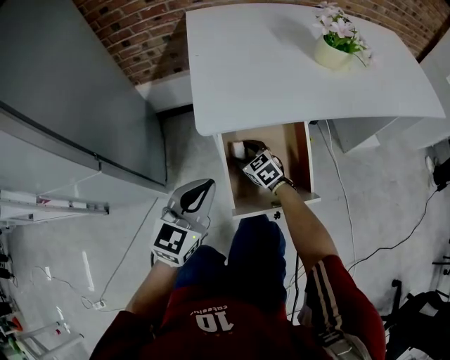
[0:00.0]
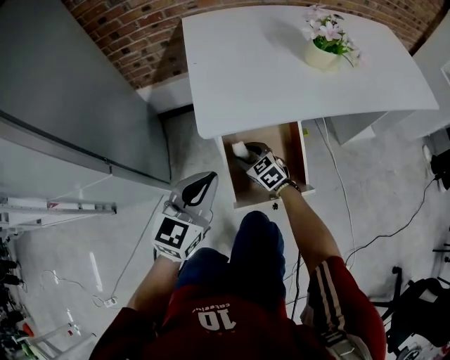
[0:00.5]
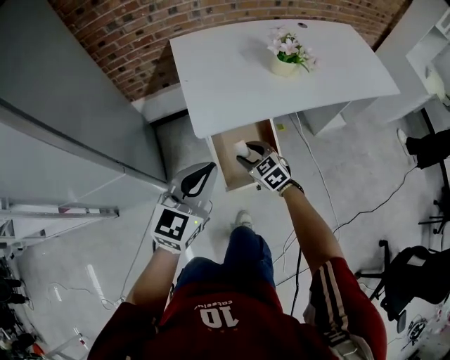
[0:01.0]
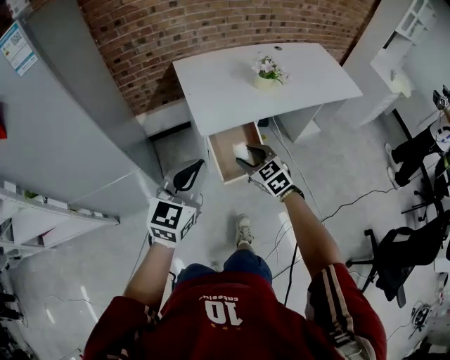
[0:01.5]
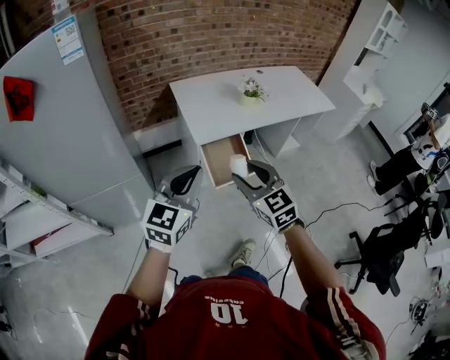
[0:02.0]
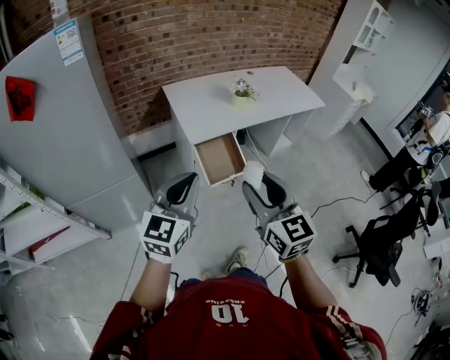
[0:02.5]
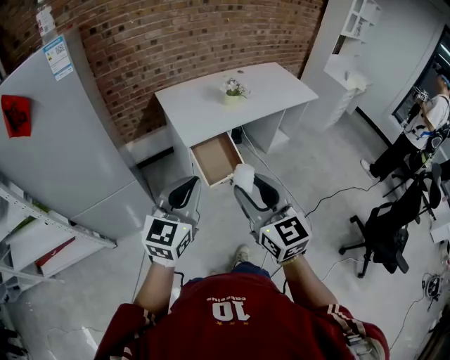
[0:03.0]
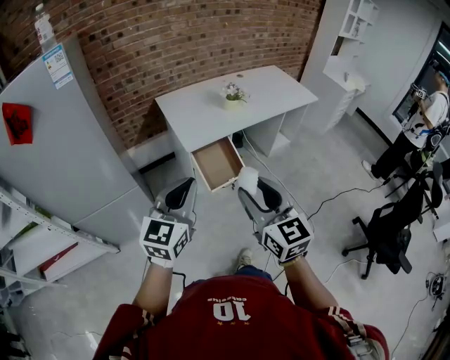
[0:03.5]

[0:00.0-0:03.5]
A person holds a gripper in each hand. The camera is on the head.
0:00.0 to 0:02.0: Both grippers travel together upward and backward, approximately 60 cm. The right gripper swivels approximately 30 degrees.
0:02.0 to 0:03.5: The left gripper heads backward, covering approximately 5 cm. Meanwhile the right gripper is displaced backward and upward by approximately 15 cm, and rotates about 20 degrees.

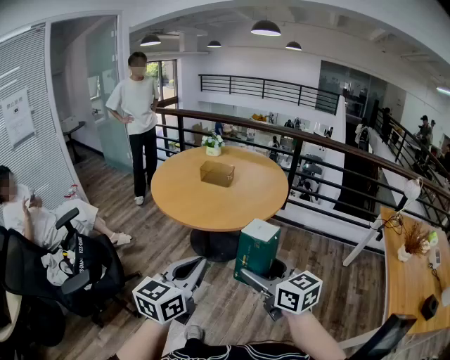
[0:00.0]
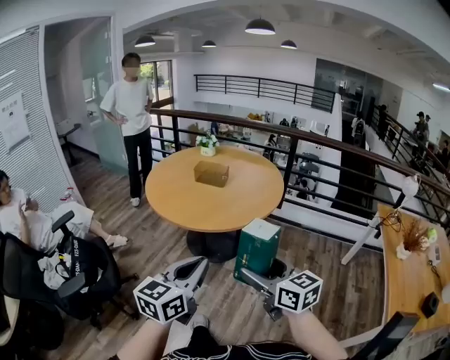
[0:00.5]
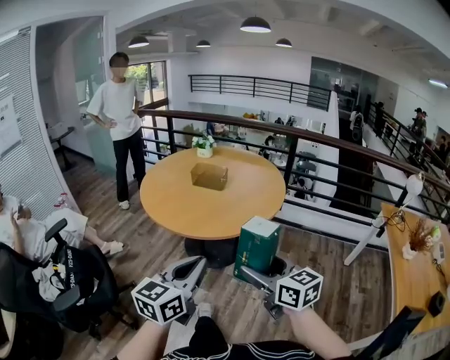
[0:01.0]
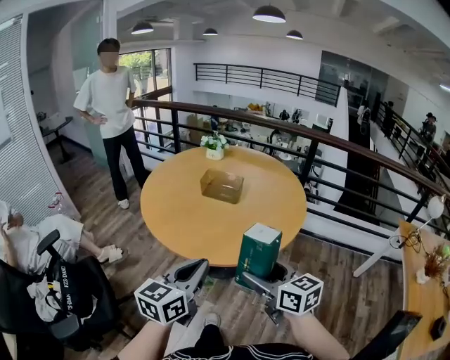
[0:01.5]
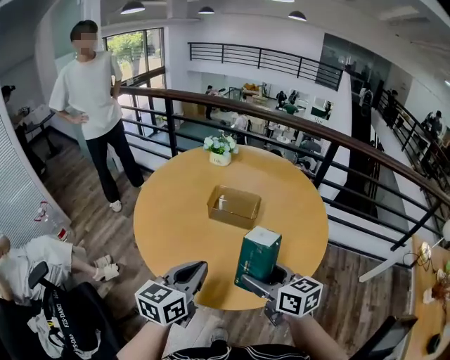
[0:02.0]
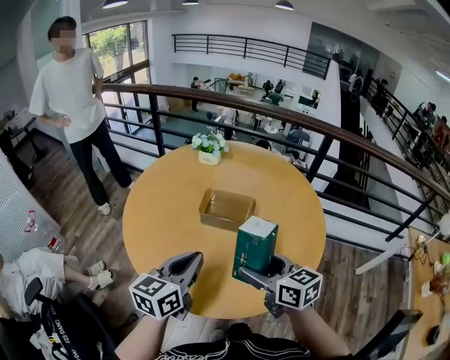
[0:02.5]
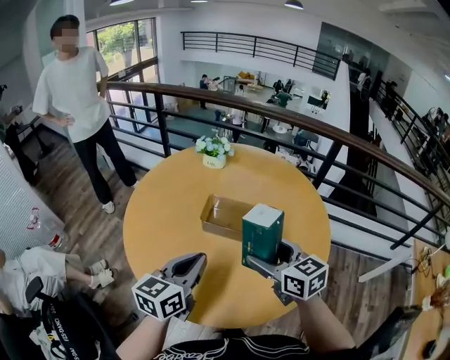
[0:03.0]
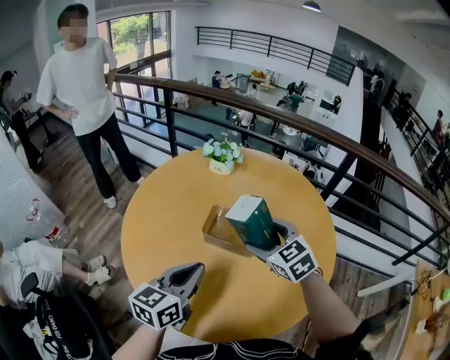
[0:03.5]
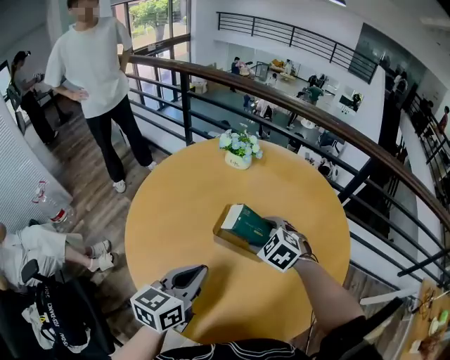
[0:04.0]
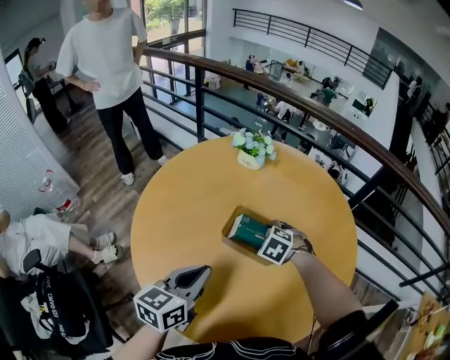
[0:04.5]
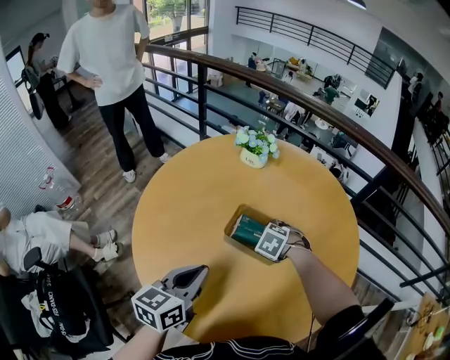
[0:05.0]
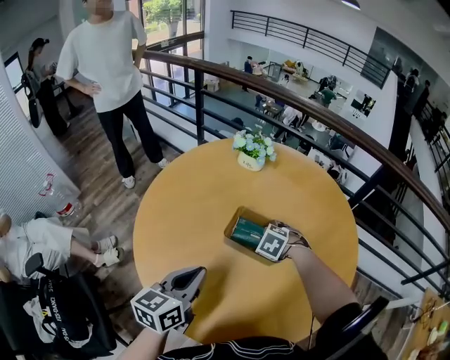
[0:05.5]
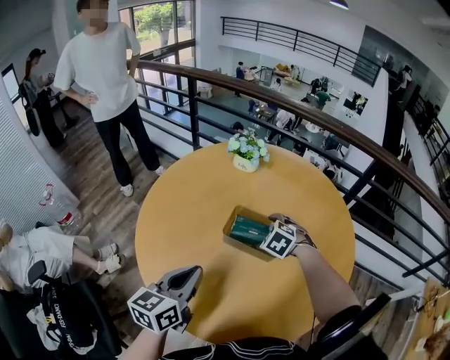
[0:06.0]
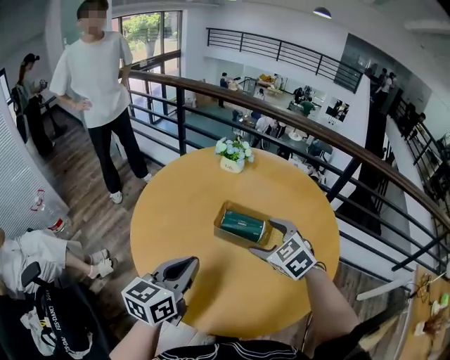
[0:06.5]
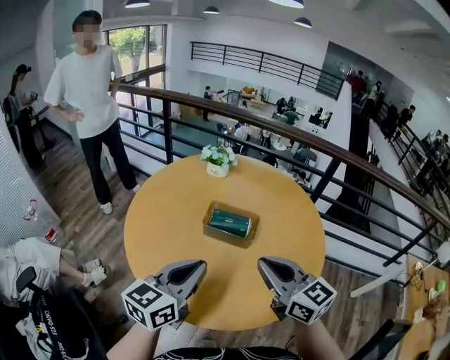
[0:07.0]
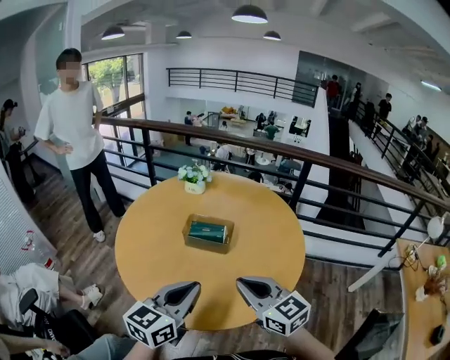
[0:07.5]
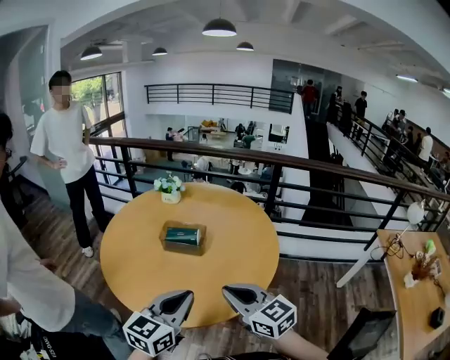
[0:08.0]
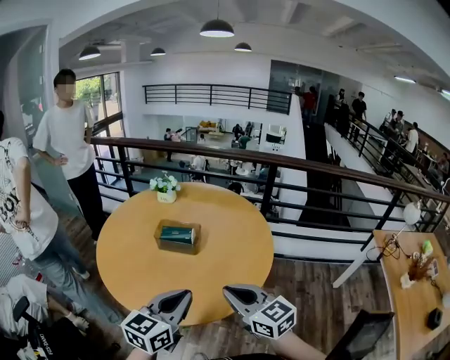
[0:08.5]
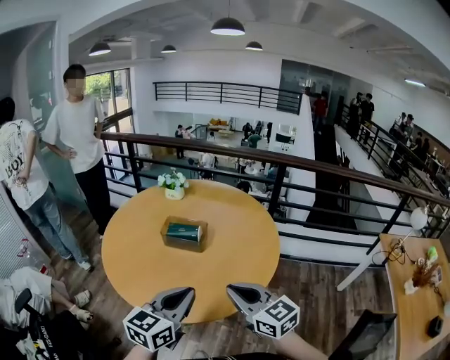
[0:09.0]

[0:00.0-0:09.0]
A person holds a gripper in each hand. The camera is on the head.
0:00.0 to 0:02.0: The grippers both shift forward by about 35 cm.
0:02.0 to 0:04.5: The right gripper travels forward and downward by some 30 cm, and tilts its fingers approximately 50 degrees downward. Meanwhile the left gripper heads forward, covering roughly 10 cm.
0:04.5 to 0:07.0: The right gripper is displaced upward by some 25 cm, angles its fingers upward, by roughly 70 degrees, and closes up. The left gripper moves upward, approximately 10 cm.
0:07.0 to 0:09.0: The grippers both shift backward and to the right by about 10 cm.

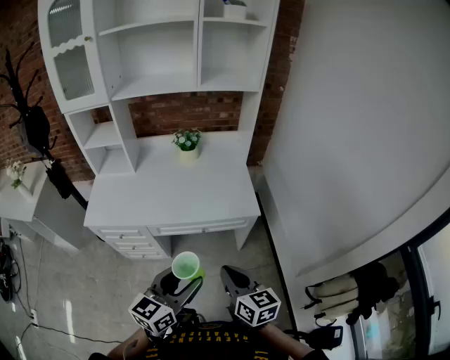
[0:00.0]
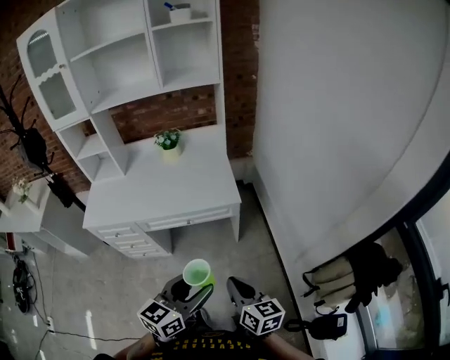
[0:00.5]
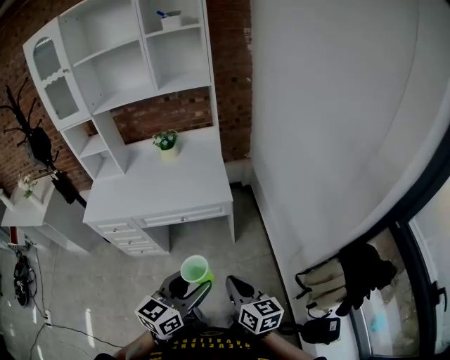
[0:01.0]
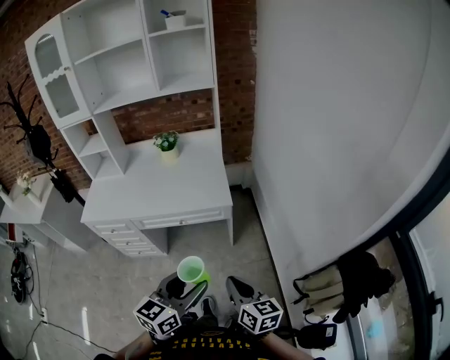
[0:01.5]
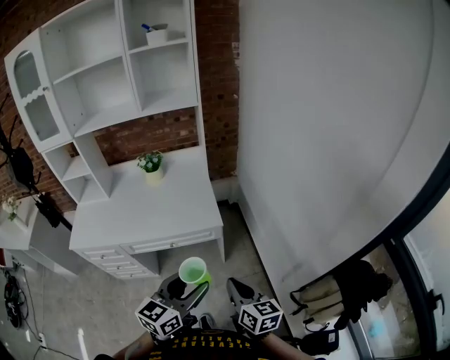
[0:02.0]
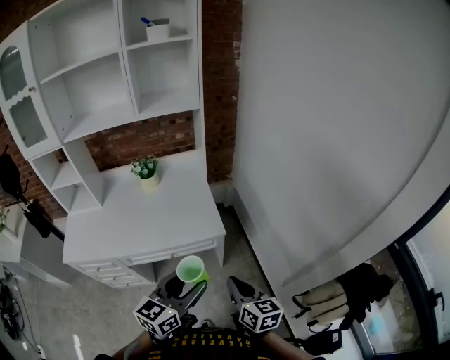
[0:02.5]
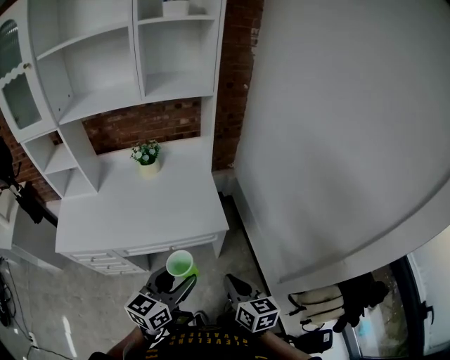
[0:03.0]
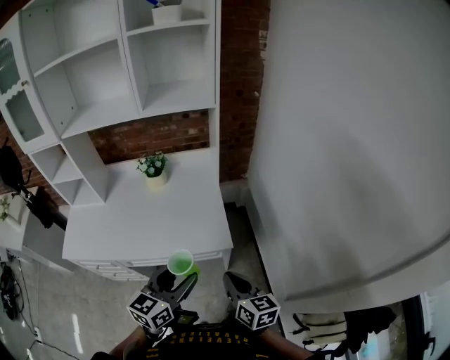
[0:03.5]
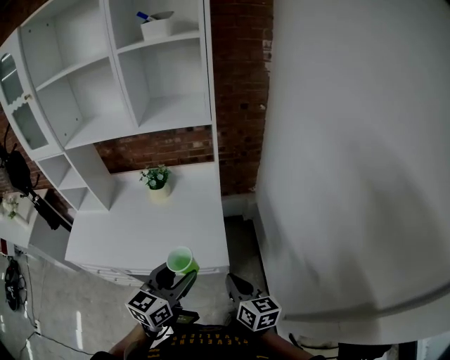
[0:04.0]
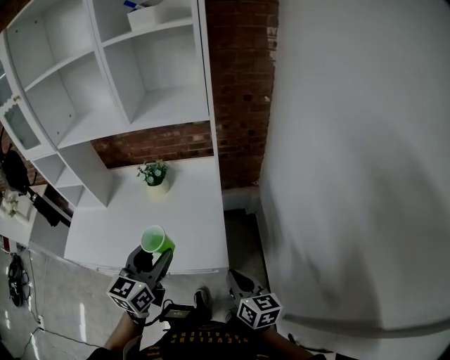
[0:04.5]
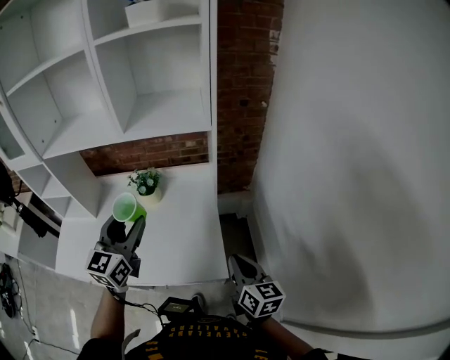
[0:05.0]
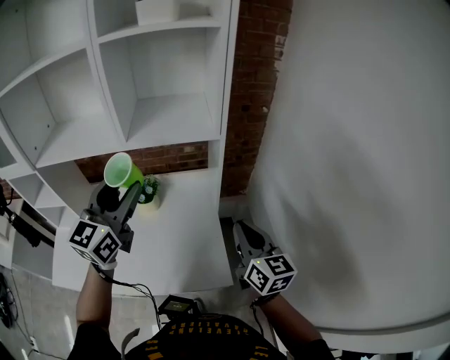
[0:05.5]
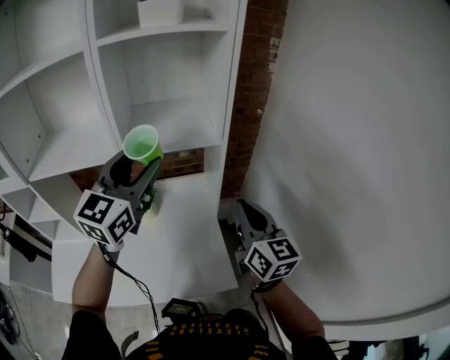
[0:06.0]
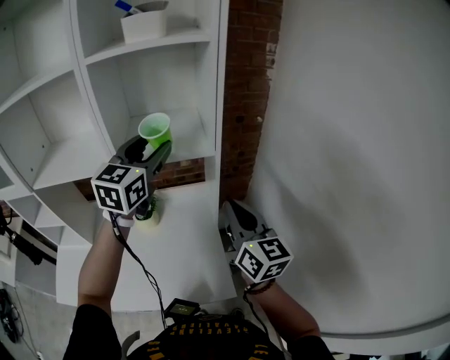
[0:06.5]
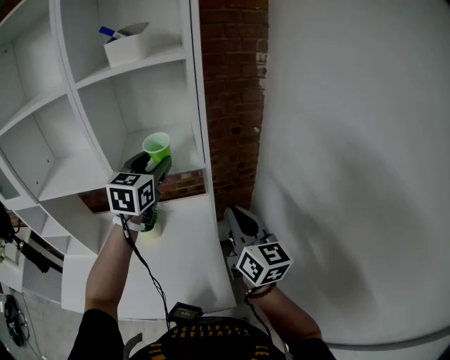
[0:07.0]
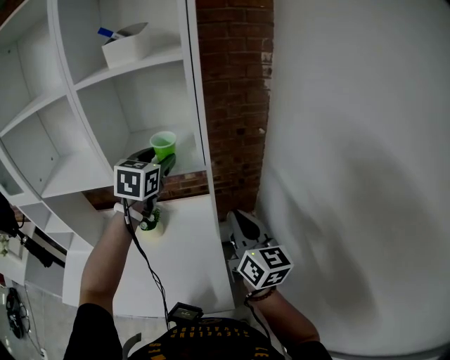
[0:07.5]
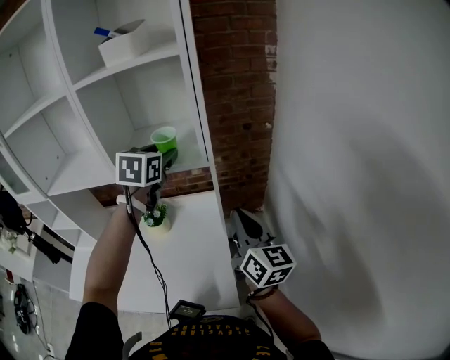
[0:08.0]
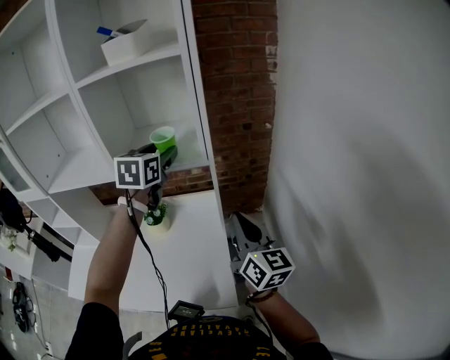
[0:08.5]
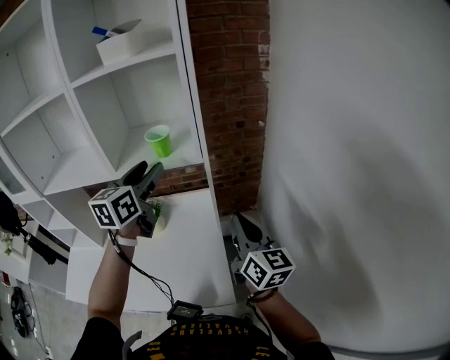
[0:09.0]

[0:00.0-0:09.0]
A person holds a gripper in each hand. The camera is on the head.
0:00.0 to 0:02.0: The two grippers go some 25 cm to the right.
0:02.0 to 0:04.5: The grippers both shift forward by some 30 cm. The left gripper swivels some 20 degrees.
0:04.5 to 0:07.0: The two grippers go approximately 40 cm forward and upward. The right gripper changes its angle by about 30 degrees.
0:07.0 to 0:09.0: The left gripper rotates approximately 20 degrees.

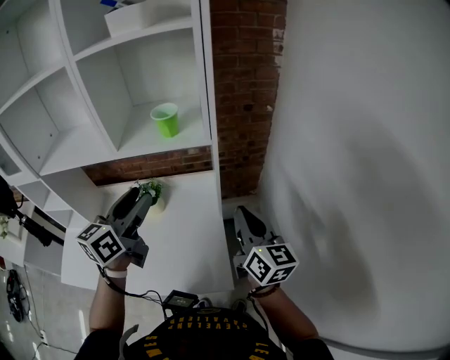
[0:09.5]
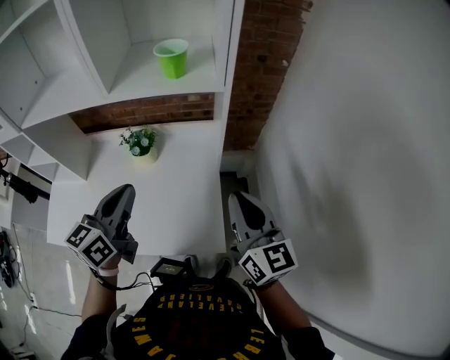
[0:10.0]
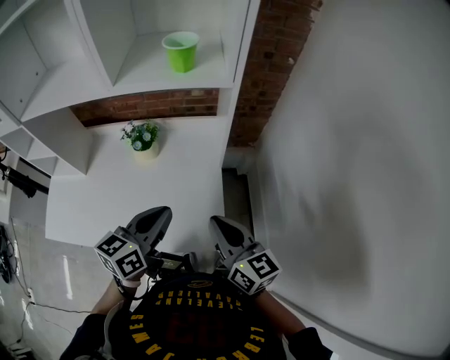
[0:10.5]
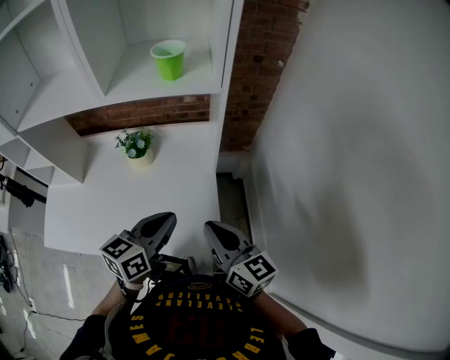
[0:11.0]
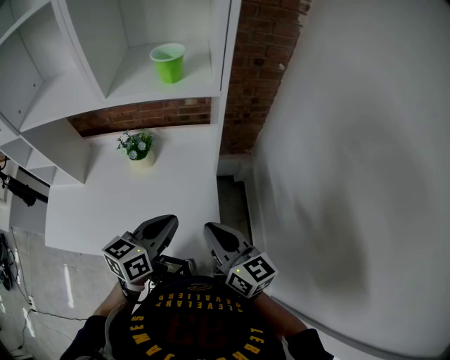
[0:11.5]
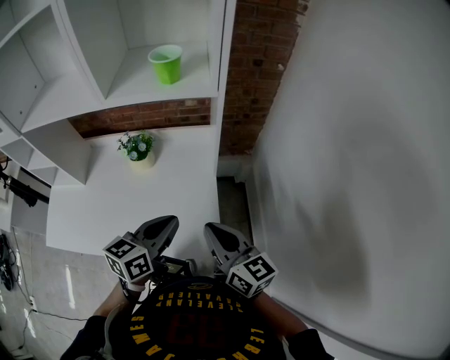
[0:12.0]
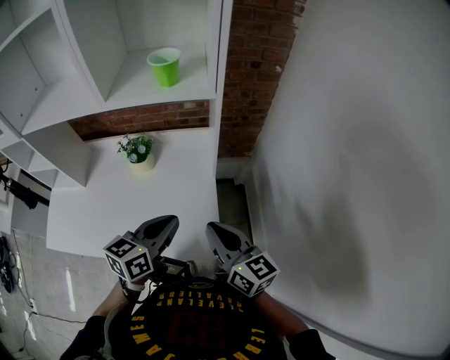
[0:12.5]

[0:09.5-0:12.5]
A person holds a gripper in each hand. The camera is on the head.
0:09.5 to 0:11.0: The right gripper moves backward, downward and to the left, some 15 cm, while the left gripper heads downward and backward, covering approximately 20 cm, and closes.
0:11.0 to 0:12.5: The grippers make only small movements.

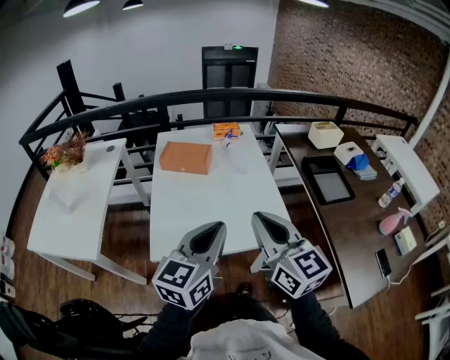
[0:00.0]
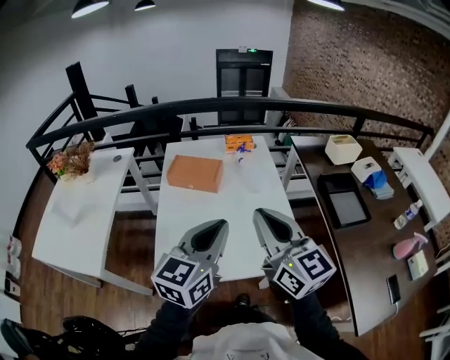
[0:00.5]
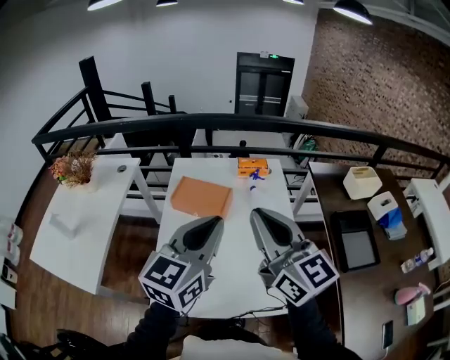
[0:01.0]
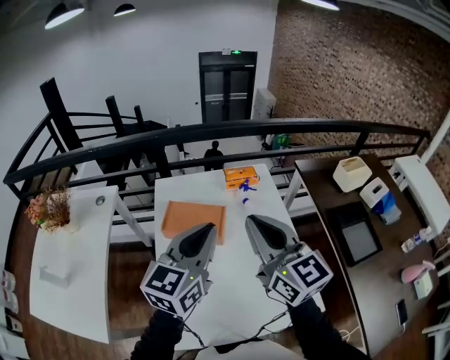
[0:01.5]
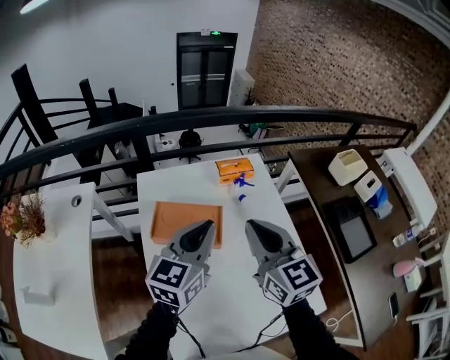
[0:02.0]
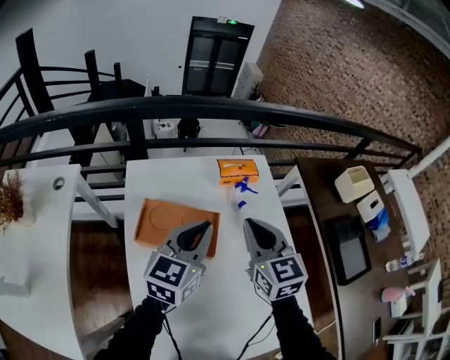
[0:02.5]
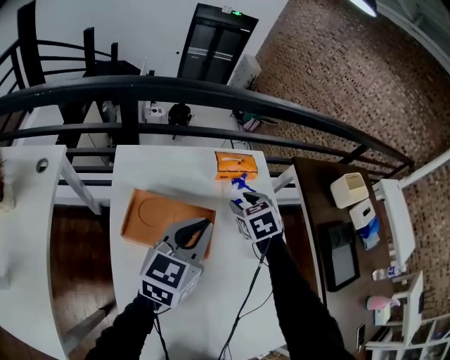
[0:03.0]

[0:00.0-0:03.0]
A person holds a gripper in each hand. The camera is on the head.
0:00.0 to 0:01.5: The pair of grippers is taken forward, some 60 cm.
0:01.5 to 0:03.0: The two grippers go about 50 cm forward and downward. The right gripper points its fingers approximately 60 degrees further downward, and opens up.
